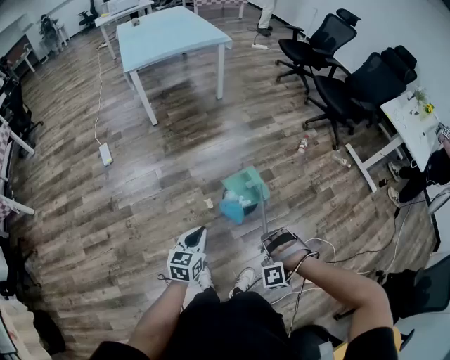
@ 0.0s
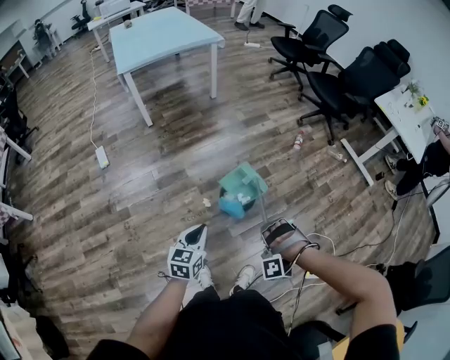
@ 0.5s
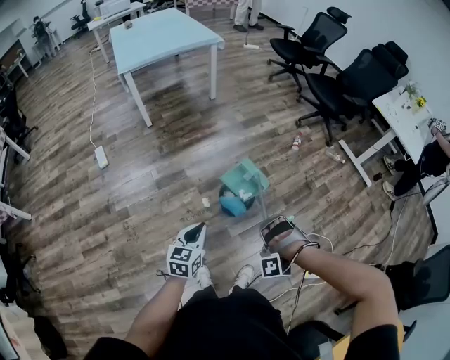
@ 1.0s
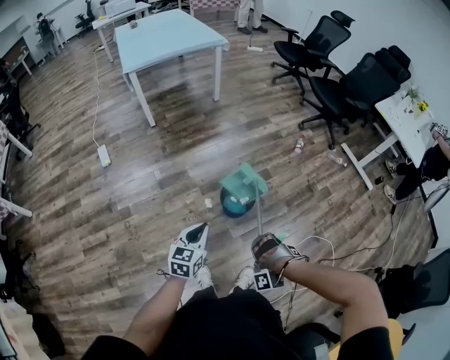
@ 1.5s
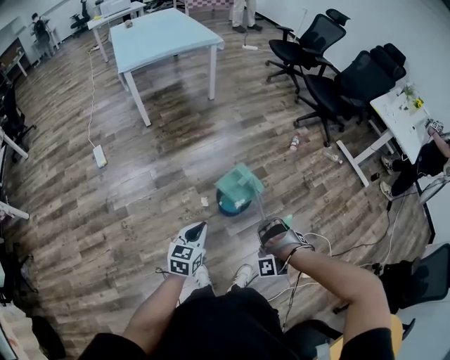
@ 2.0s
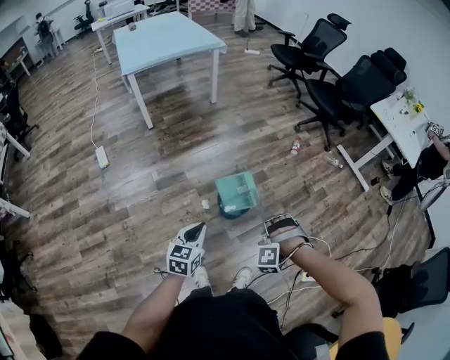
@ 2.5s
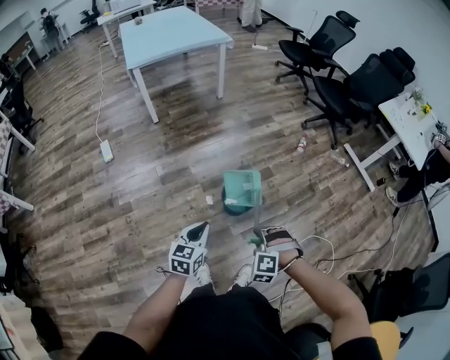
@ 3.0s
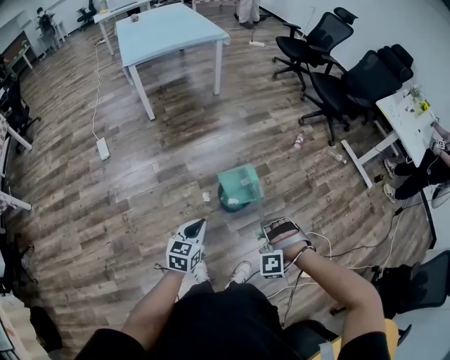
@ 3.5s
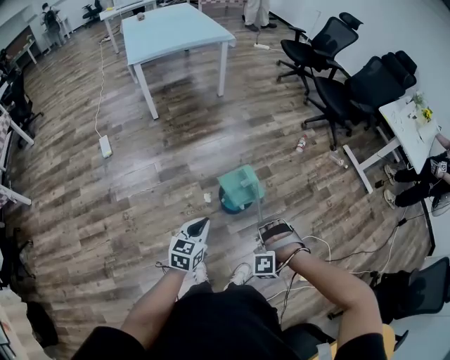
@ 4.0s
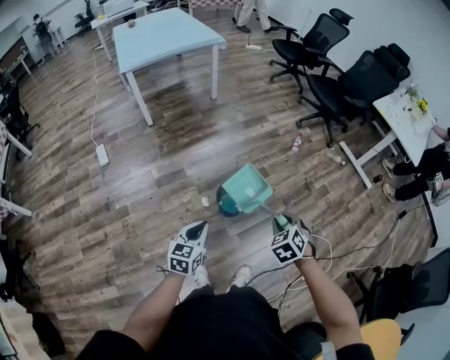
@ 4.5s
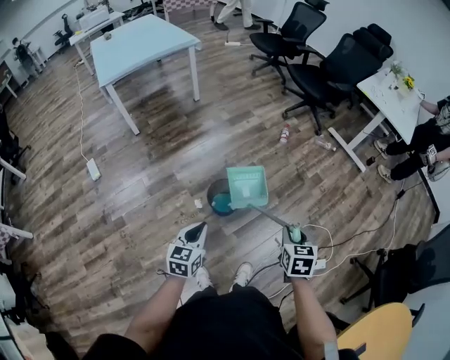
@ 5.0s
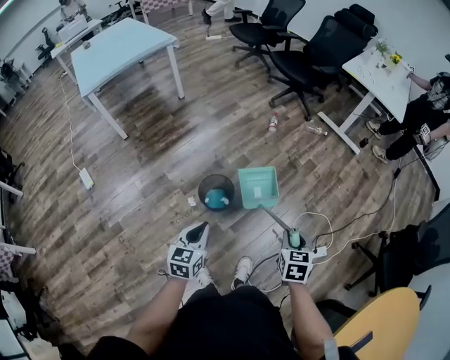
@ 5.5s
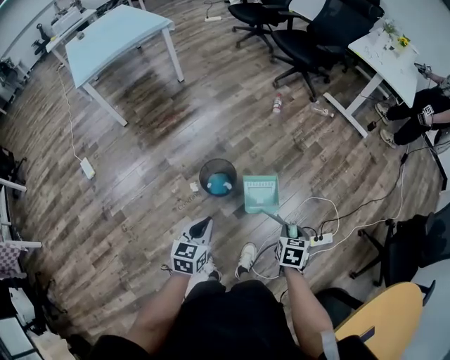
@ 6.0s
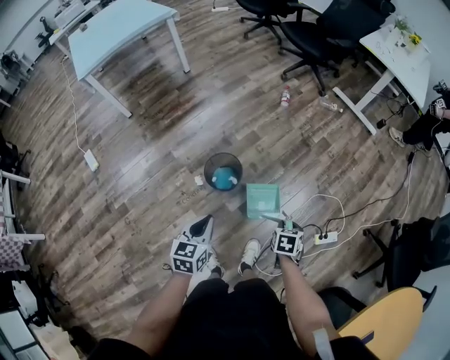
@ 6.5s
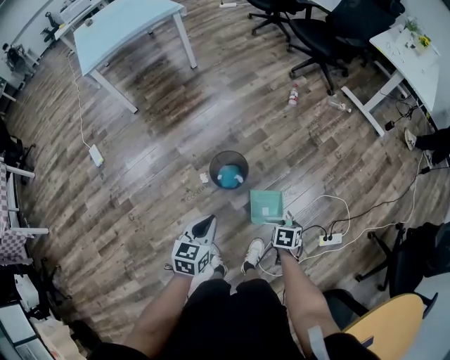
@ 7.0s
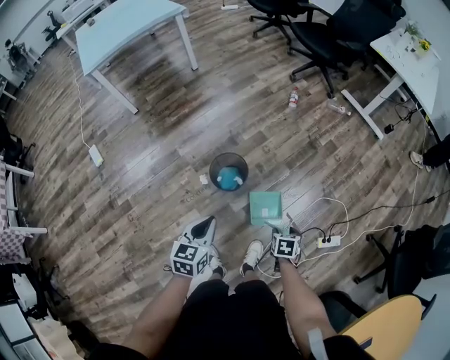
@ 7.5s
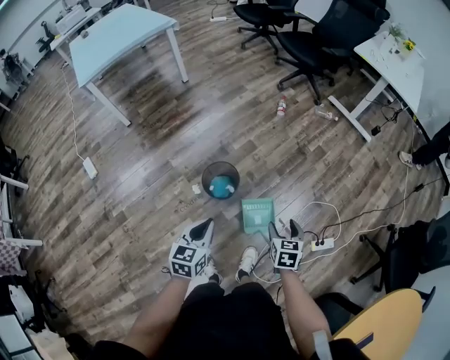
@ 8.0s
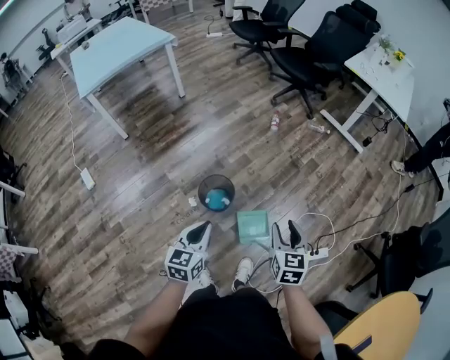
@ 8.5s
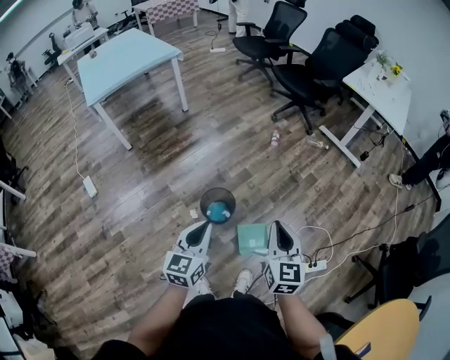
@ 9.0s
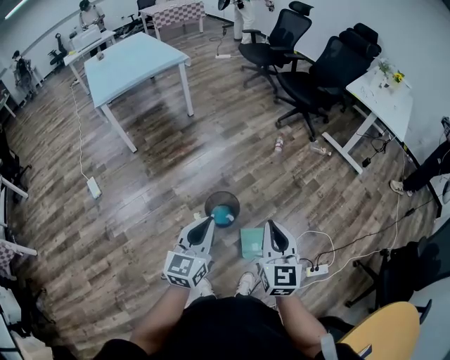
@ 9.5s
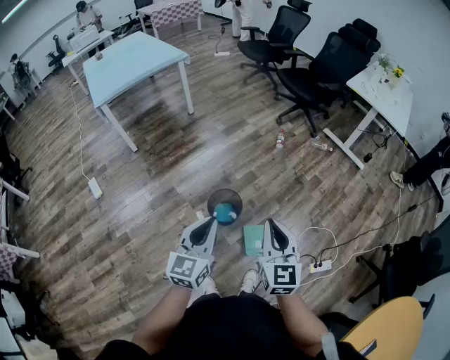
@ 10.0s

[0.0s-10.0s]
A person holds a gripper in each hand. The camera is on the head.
0.0s to 2.0s: The right gripper rotates roughly 20 degrees.
2.0s to 4.0s: The right gripper changes its angle by roughly 20 degrees.
4.0s to 6.0s: The right gripper shifts roughly 25 cm to the right, and twists roughly 130 degrees clockwise, seen from behind. Meanwhile the left gripper heads to the right, covering some 10 cm.
6.0s to 8.0s: The right gripper goes downward and returns, roughly 15 cm each way, and opens.
8.0s to 10.0s: The right gripper travels upward and to the left by roughly 30 cm, points its fingers about 40 degrees further upward, and closes up. The left gripper travels upward by about 15 cm, and changes its angle by about 20 degrees.

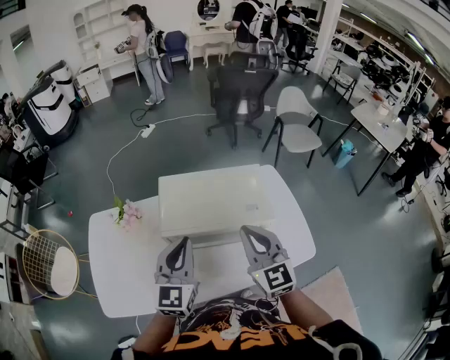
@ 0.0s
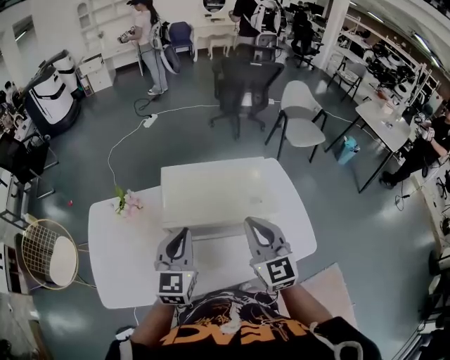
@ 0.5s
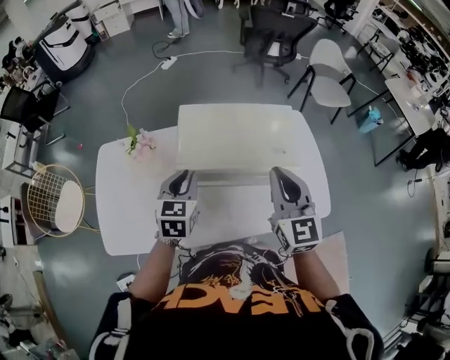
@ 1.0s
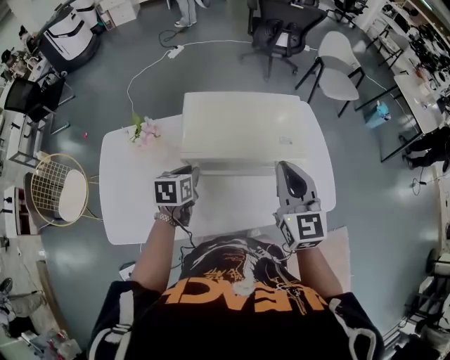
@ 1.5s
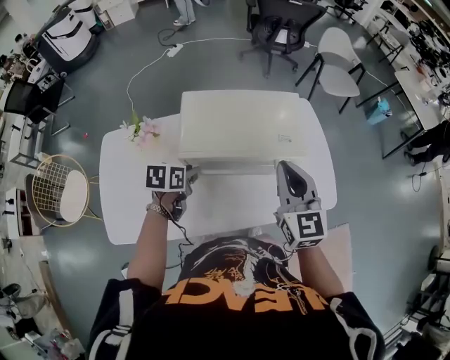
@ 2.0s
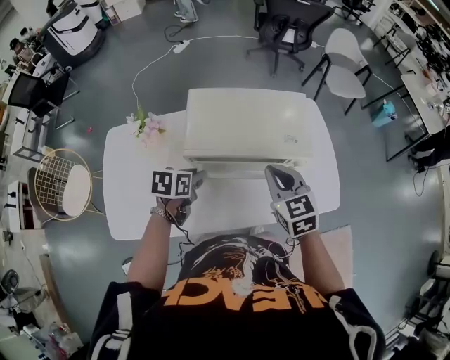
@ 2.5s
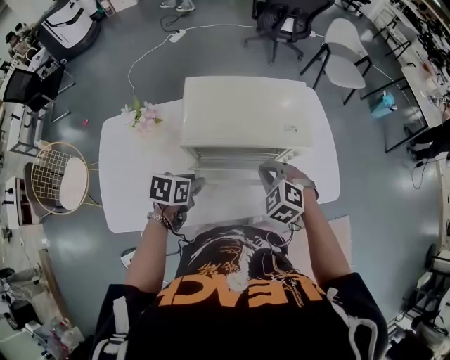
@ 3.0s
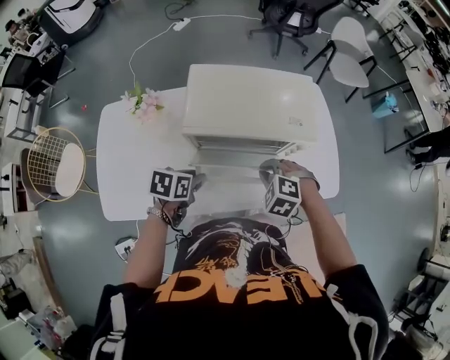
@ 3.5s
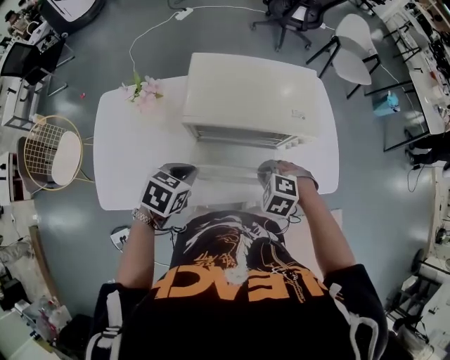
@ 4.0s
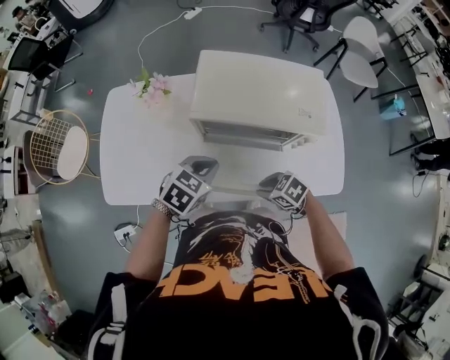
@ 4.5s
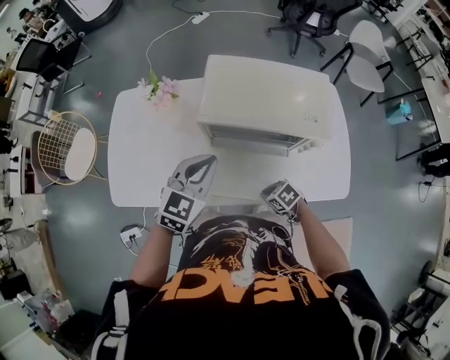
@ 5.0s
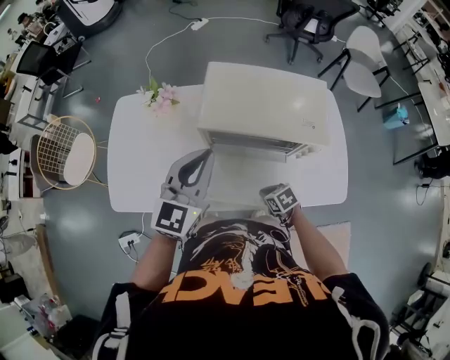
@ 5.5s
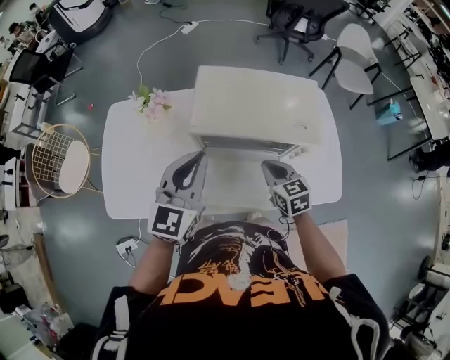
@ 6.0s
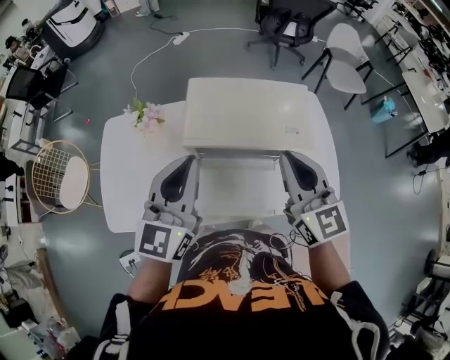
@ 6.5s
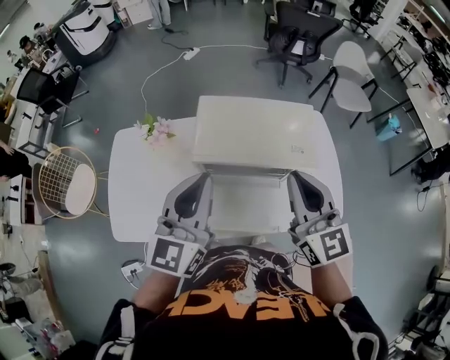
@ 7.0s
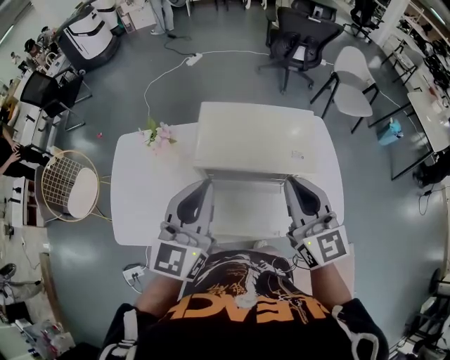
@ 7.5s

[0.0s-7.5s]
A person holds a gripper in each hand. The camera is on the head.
0.0s to 2.0s: The left gripper is displaced downward by approximately 20 cm, angles its fingers downward, by approximately 40 degrees, and opens up.
2.0s to 4.0s: The right gripper goes about 20 cm downward, and tips its fingers downward by roughly 60 degrees. Meanwhile the left gripper shifts about 10 cm backward, turns by approximately 20 degrees, and closes up.
4.0s to 5.5s: The right gripper travels downward by some 15 cm, and rolls clockwise, seen from behind, by about 50 degrees, while the left gripper heads upward, covering approximately 15 cm, and angles its fingers upward, by roughly 50 degrees.
5.5s to 7.5s: The right gripper travels upward by roughly 40 cm, and angles its fingers upward, by some 60 degrees. Meanwhile the left gripper heads upward, covering approximately 10 cm.

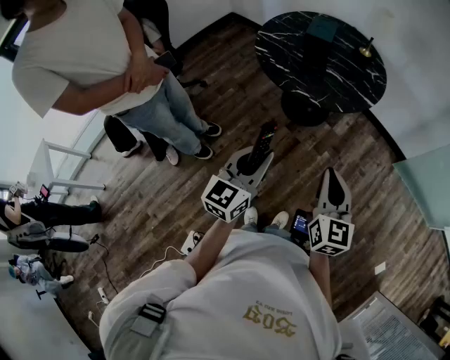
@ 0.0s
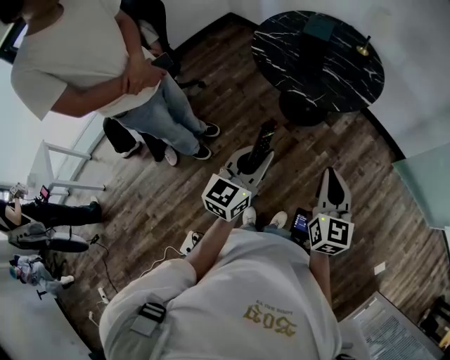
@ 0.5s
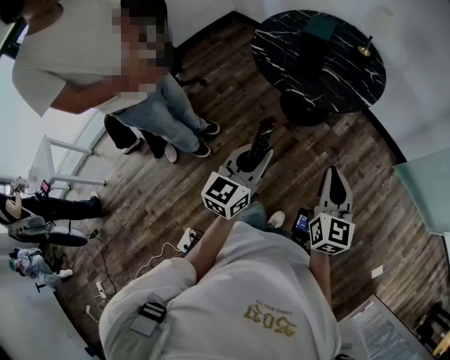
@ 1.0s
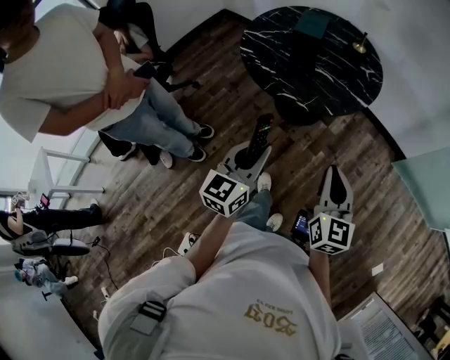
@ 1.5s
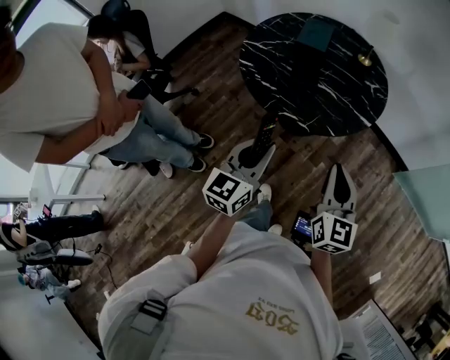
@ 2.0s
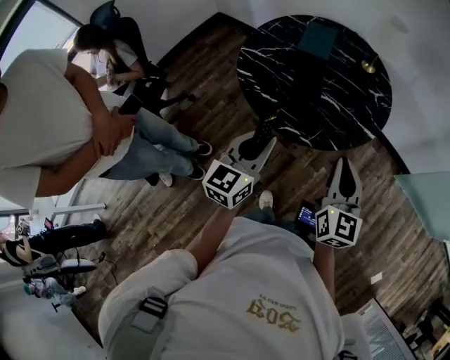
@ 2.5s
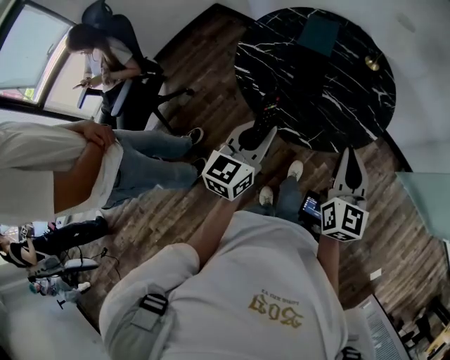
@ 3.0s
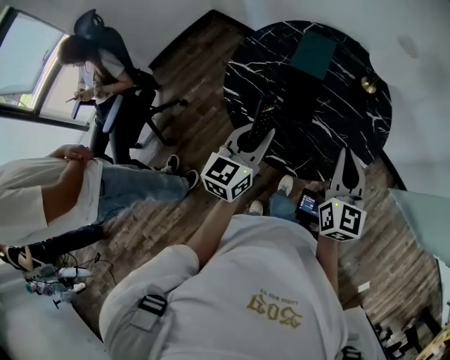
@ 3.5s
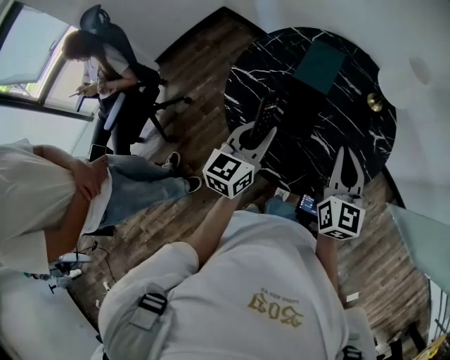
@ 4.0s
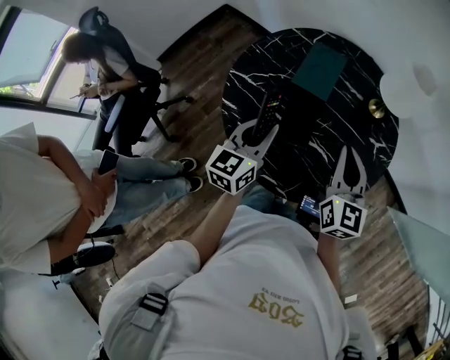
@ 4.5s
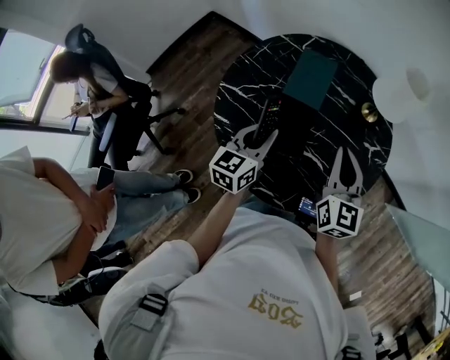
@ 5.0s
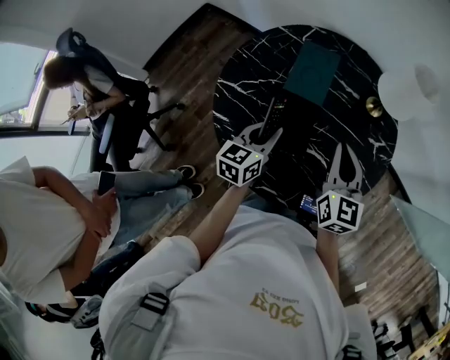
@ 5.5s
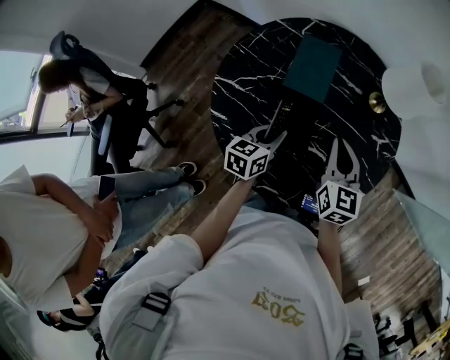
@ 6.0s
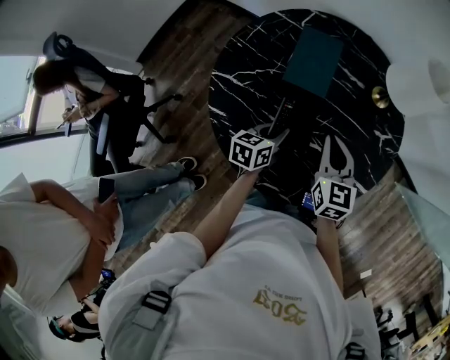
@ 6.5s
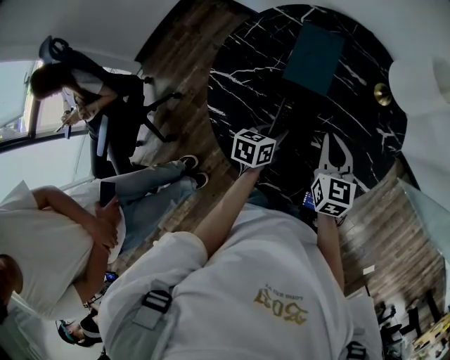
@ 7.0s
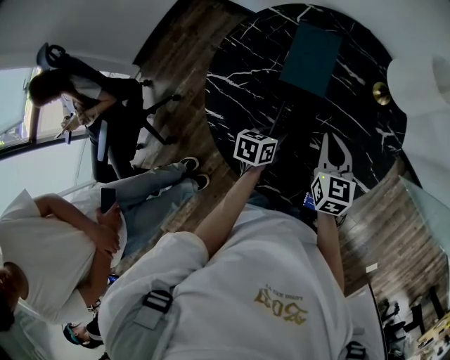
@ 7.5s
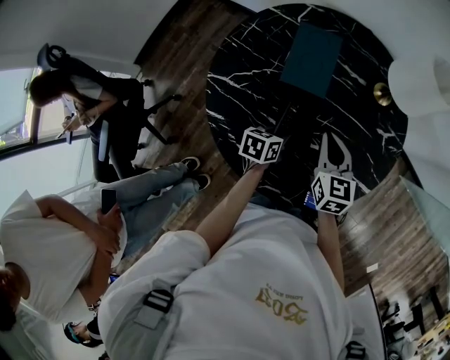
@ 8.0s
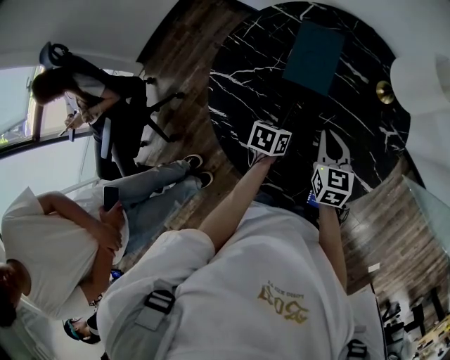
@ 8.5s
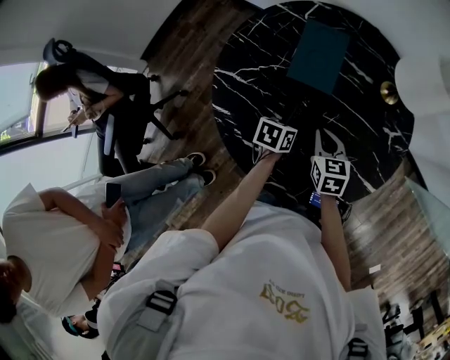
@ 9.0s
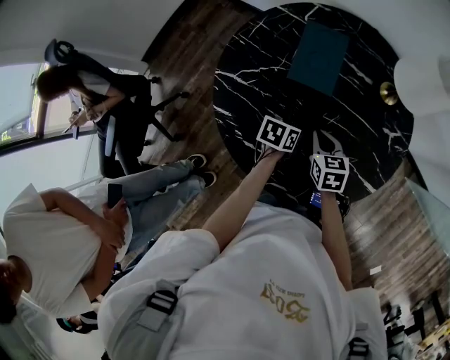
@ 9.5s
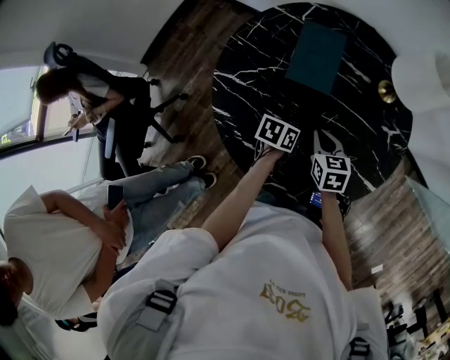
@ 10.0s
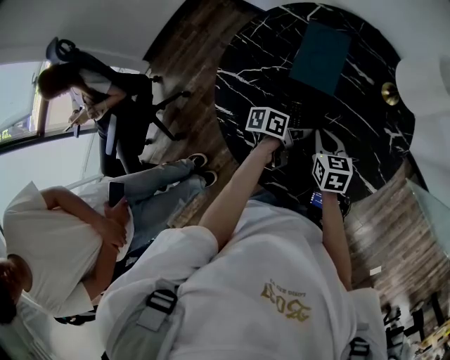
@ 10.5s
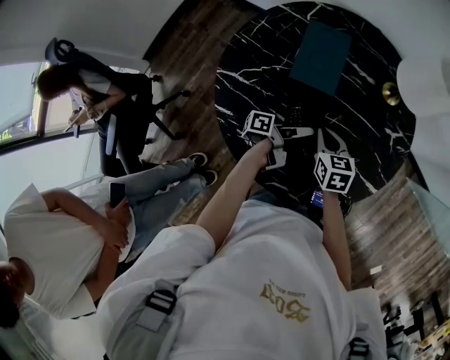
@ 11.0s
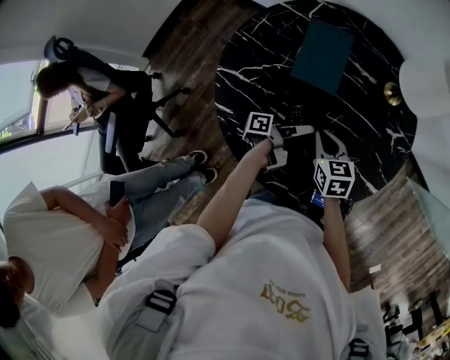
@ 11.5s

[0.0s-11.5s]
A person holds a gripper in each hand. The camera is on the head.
0.0s to 2.0s: Both grippers travel together forward, some 20 cm.
2.0s to 4.0s: The grippers both shift forward by some 35 cm.
4.0s to 6.0s: The left gripper is displaced downward and forward by roughly 20 cm, and changes its angle by approximately 30 degrees. The right gripper travels forward and downward by some 15 cm.
6.0s to 7.5s: Both grippers move downward, about 10 cm.
7.5s to 9.5s: The right gripper moves downward, approximately 10 cm, and turns by some 20 degrees.
9.5s to 11.5s: The left gripper tips its fingers upward by roughly 50 degrees.
